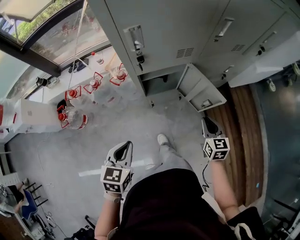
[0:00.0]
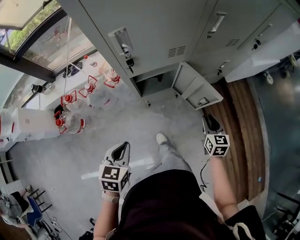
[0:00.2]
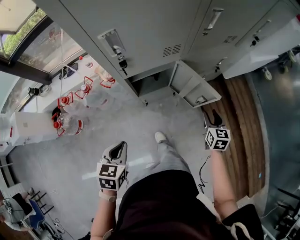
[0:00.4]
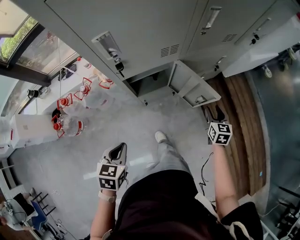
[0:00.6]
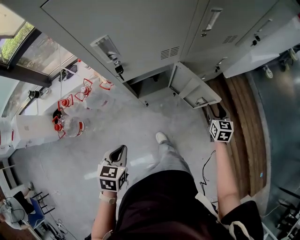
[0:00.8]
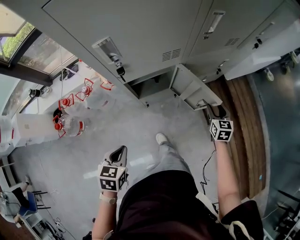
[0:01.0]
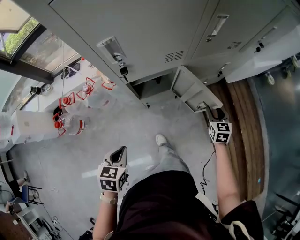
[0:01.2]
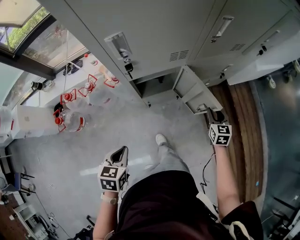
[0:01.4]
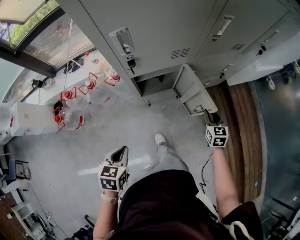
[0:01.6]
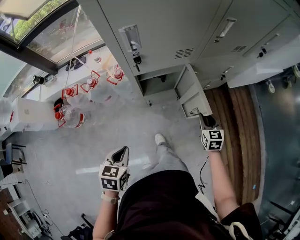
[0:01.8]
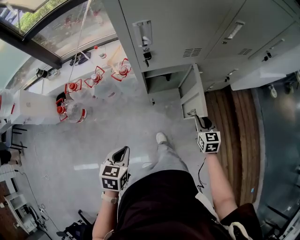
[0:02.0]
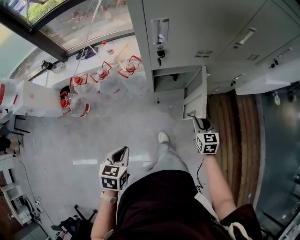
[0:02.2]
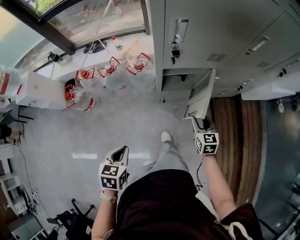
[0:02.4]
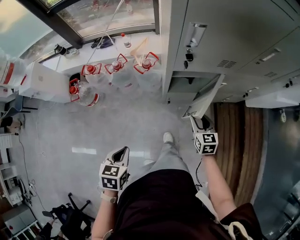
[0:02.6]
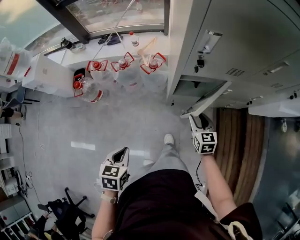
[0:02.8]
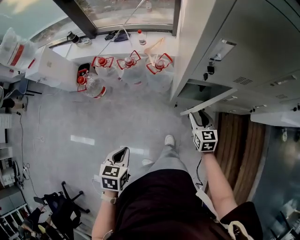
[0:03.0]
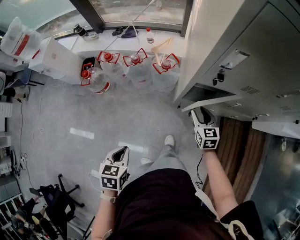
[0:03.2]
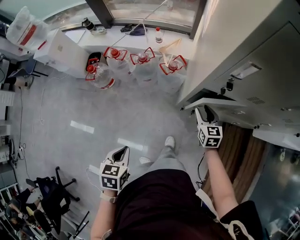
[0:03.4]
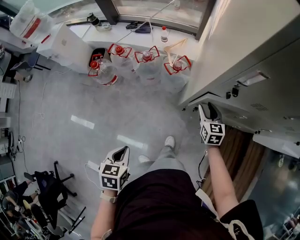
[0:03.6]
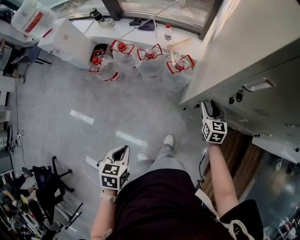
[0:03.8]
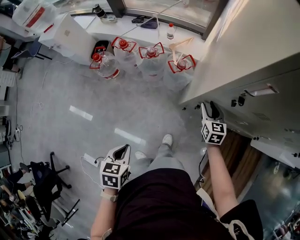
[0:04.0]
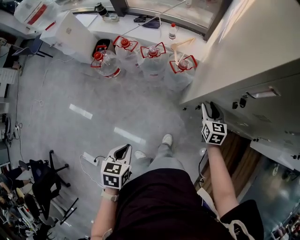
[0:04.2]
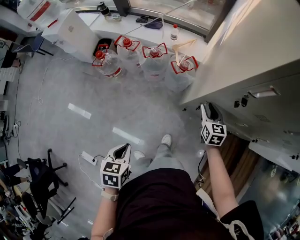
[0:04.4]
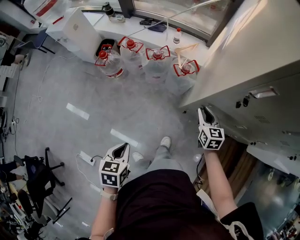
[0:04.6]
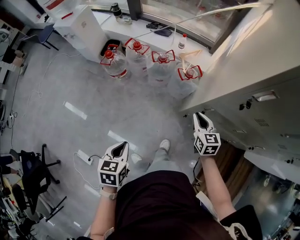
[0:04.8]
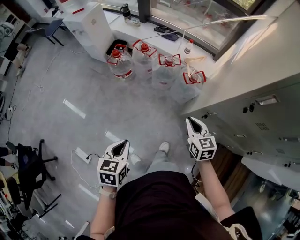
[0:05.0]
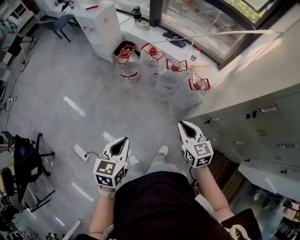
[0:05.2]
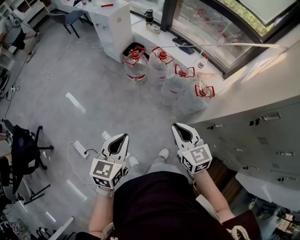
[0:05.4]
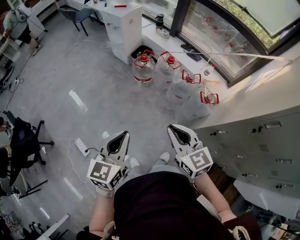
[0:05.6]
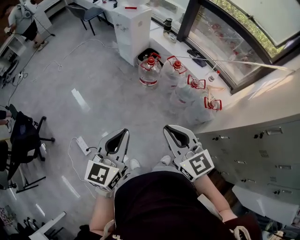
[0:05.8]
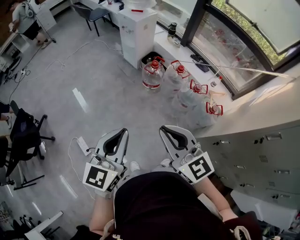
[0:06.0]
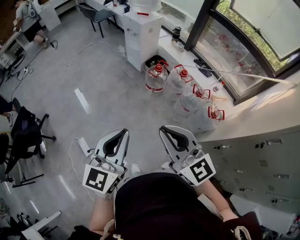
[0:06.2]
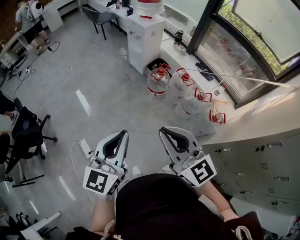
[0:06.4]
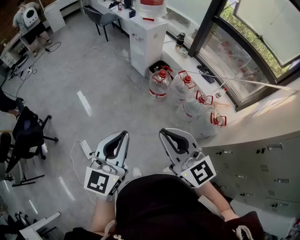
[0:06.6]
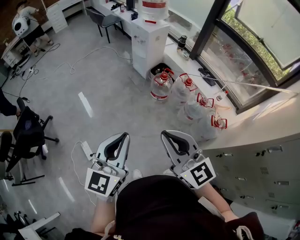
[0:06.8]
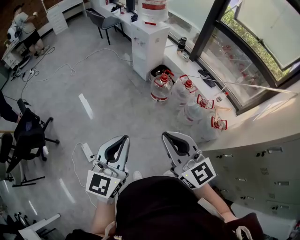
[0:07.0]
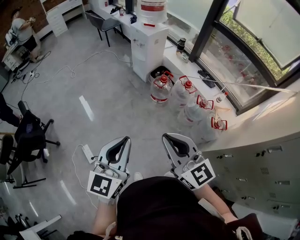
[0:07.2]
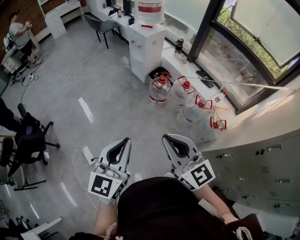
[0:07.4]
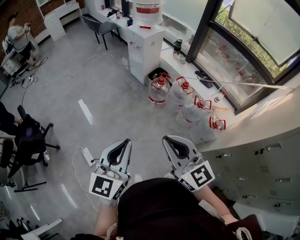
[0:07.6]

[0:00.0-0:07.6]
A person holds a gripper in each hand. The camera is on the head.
0:00.0 to 0:01.6: The left gripper shifts some 5 cm downward. Meanwhile the right gripper goes about 10 cm forward, downward and to the right, and opens and closes again.
0:01.6 to 0:03.0: The left gripper shifts by some 15 cm, and swivels about 20 degrees. Meanwhile the right gripper changes place by some 30 cm, and turns by roughly 30 degrees.
0:03.0 to 0:04.6: The right gripper shifts some 10 cm forward and to the left.
0:04.6 to 0:06.0: The left gripper moves upward, approximately 25 cm, and points its fingers about 50 degrees further upward. The right gripper shifts by about 60 cm, and rotates roughly 60 degrees.

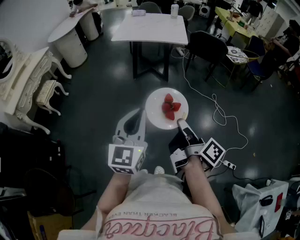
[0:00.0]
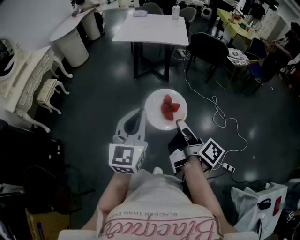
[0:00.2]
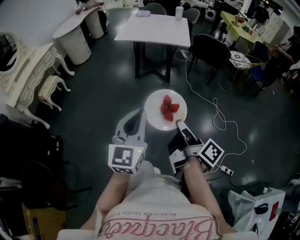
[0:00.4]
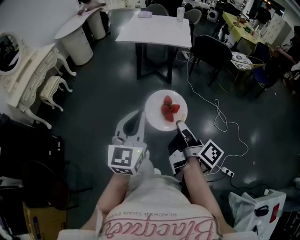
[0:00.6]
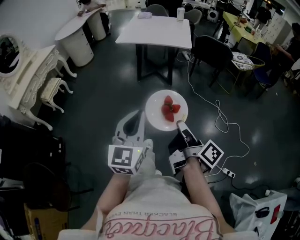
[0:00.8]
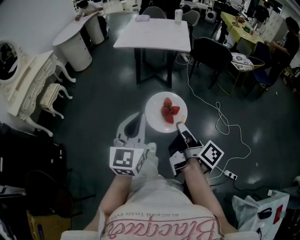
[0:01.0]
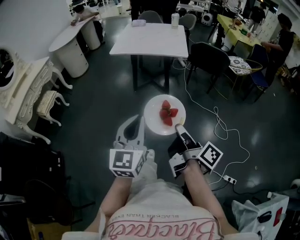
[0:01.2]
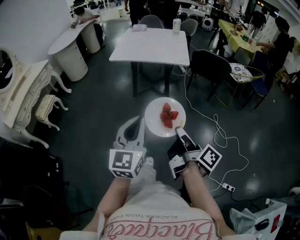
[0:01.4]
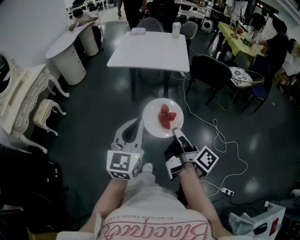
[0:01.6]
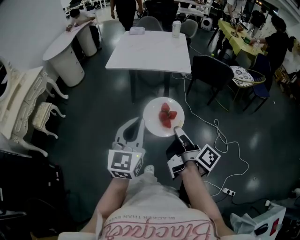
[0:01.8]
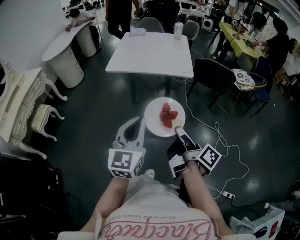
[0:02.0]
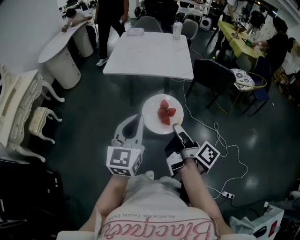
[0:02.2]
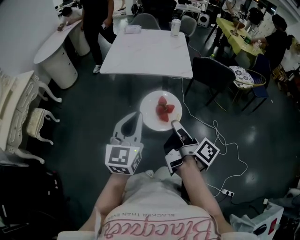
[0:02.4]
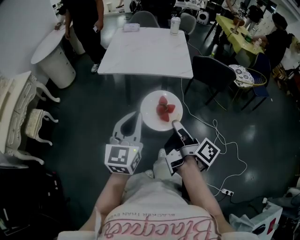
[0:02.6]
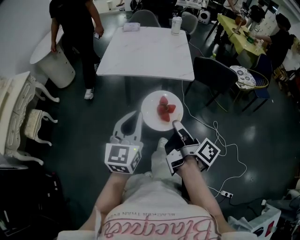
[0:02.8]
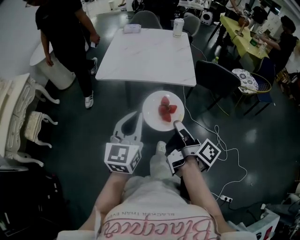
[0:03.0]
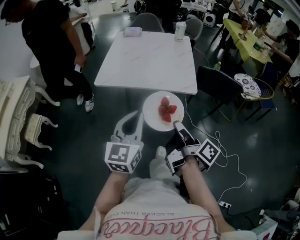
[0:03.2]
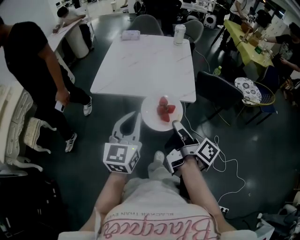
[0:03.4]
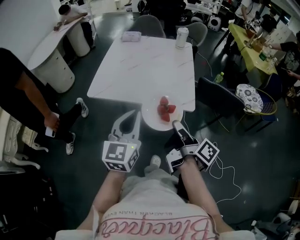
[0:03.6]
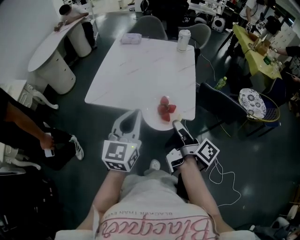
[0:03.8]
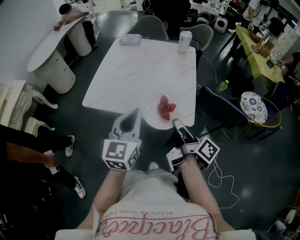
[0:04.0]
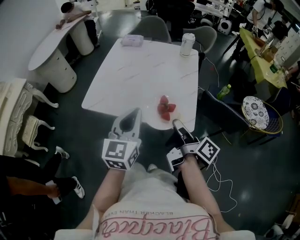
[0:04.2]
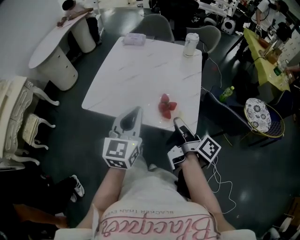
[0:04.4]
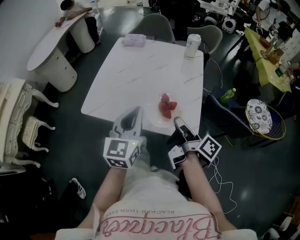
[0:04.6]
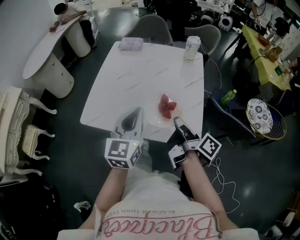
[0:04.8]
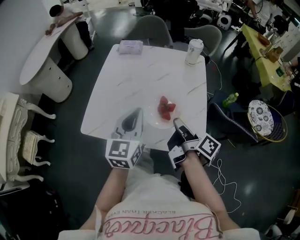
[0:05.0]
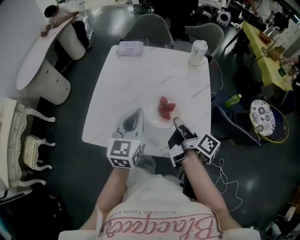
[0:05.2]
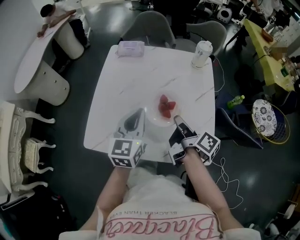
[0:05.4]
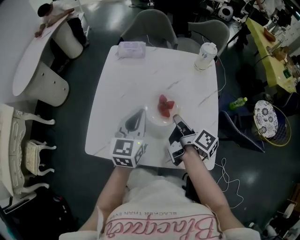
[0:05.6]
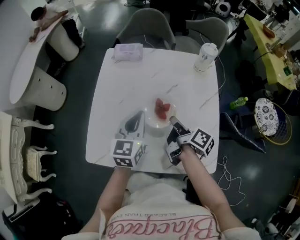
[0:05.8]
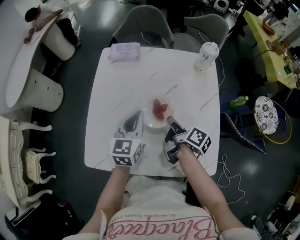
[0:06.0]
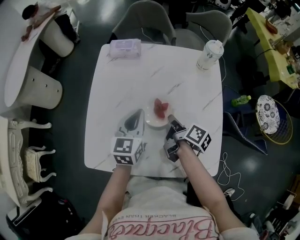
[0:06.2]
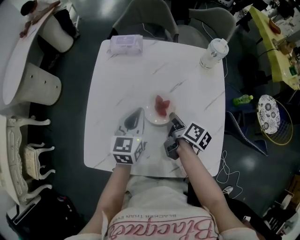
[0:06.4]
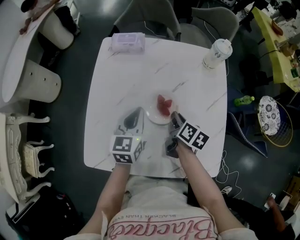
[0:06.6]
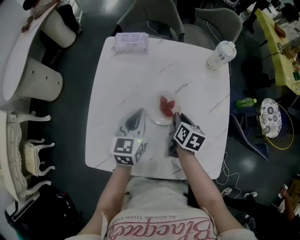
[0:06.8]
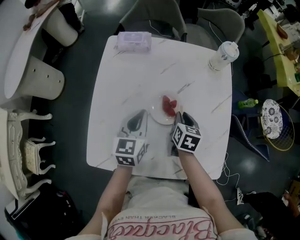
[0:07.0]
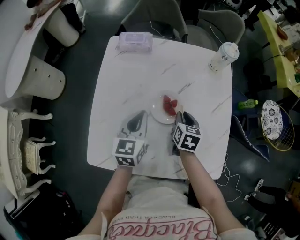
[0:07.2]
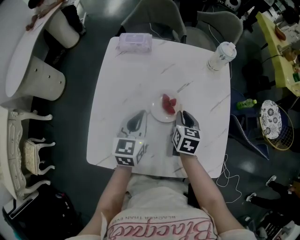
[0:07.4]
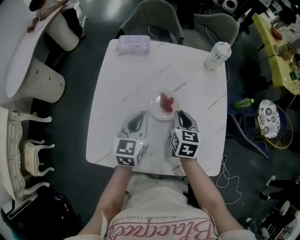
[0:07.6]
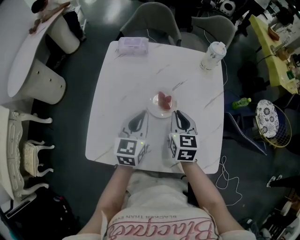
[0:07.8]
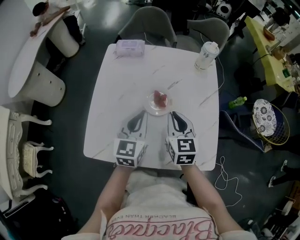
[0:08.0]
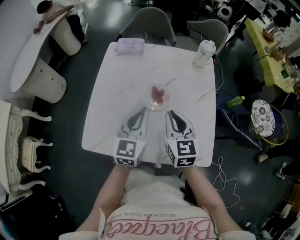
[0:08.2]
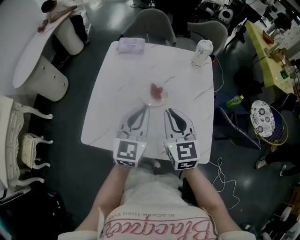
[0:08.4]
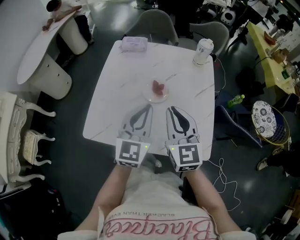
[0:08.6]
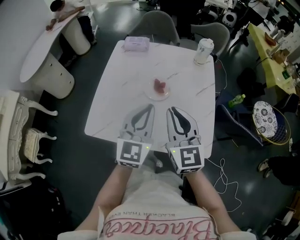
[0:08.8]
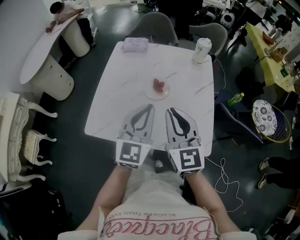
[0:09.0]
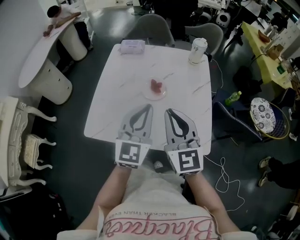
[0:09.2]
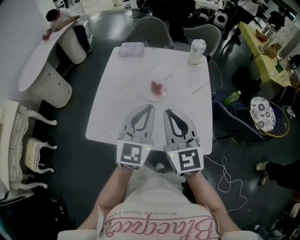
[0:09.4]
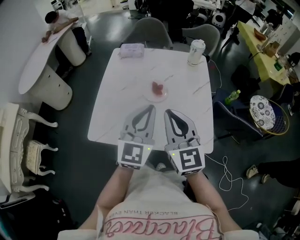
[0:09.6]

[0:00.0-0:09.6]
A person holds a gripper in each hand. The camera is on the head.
0:00.0 to 0:01.6: Both grippers travel together forward, approximately 20 cm.
0:01.6 to 0:03.2: Both grippers travel together forward, some 35 cm.
0:03.2 to 0:04.8: The two grippers go about 40 cm forward.
0:04.8 to 0:06.4: Both grippers travel together forward and downward, some 30 cm. The right gripper changes its angle by approximately 30 degrees.
0:06.4 to 0:08.0: The right gripper is displaced upward and backward by some 10 cm, and twists some 60 degrees counterclockwise, seen from behind, while the left gripper travels backward by some 5 cm.
0:08.0 to 0:09.6: The grippers both shift backward and upward by roughly 20 cm. The left gripper swivels approximately 20 degrees, while the right gripper rotates roughly 30 degrees.

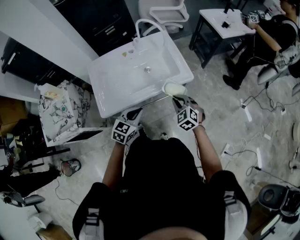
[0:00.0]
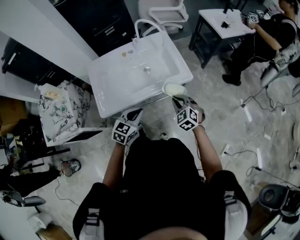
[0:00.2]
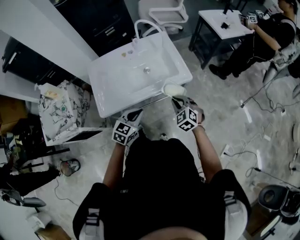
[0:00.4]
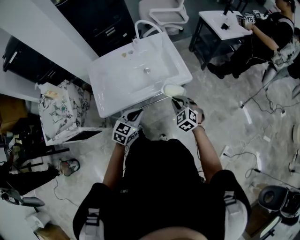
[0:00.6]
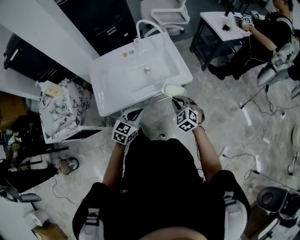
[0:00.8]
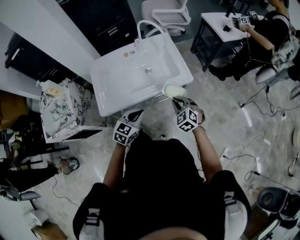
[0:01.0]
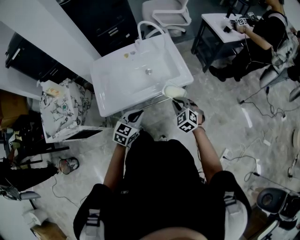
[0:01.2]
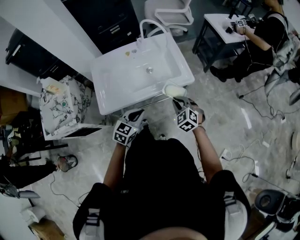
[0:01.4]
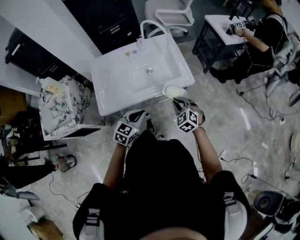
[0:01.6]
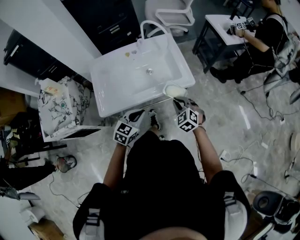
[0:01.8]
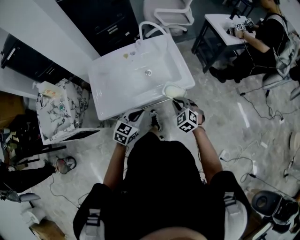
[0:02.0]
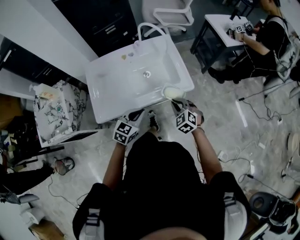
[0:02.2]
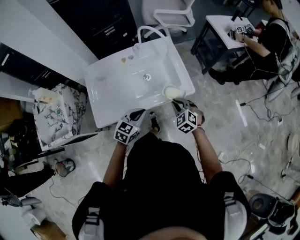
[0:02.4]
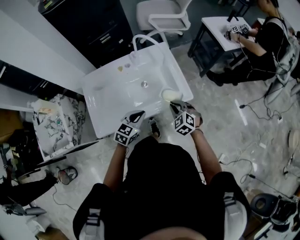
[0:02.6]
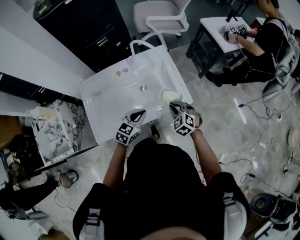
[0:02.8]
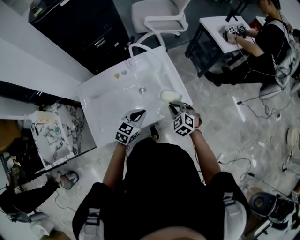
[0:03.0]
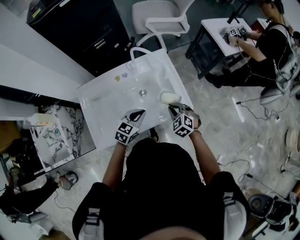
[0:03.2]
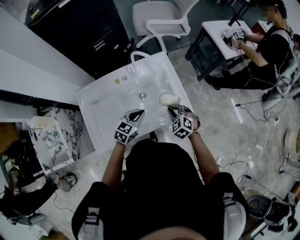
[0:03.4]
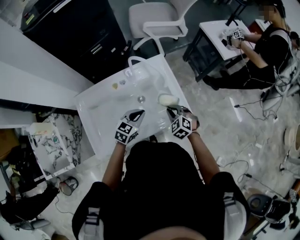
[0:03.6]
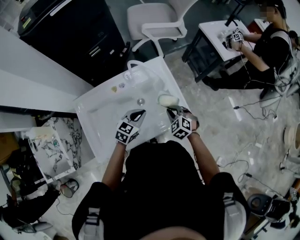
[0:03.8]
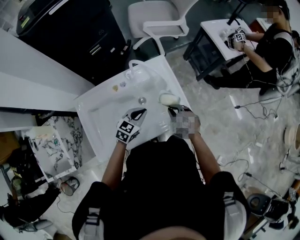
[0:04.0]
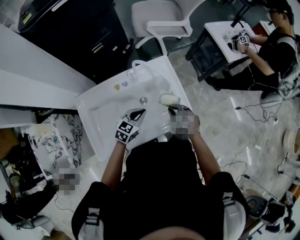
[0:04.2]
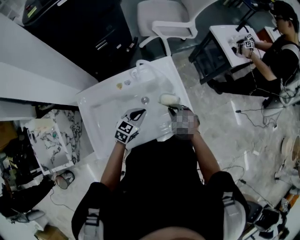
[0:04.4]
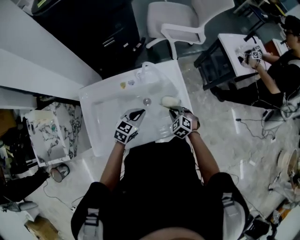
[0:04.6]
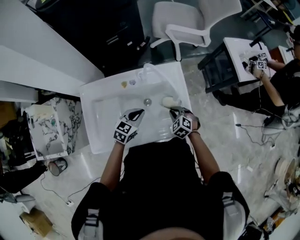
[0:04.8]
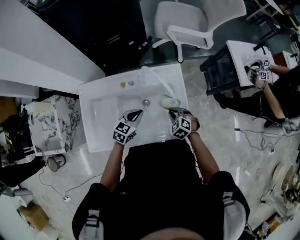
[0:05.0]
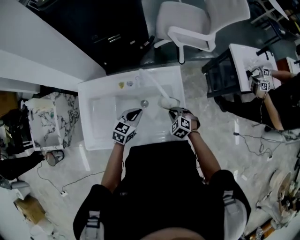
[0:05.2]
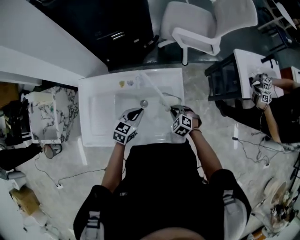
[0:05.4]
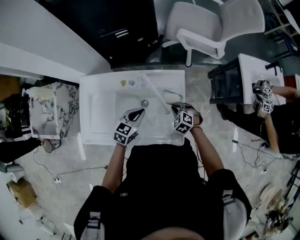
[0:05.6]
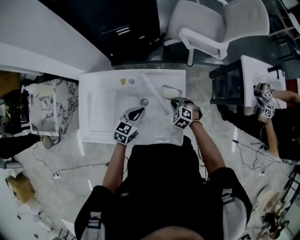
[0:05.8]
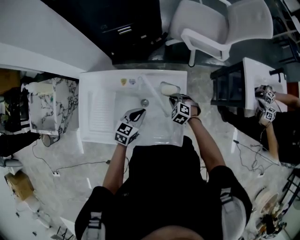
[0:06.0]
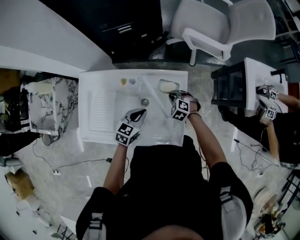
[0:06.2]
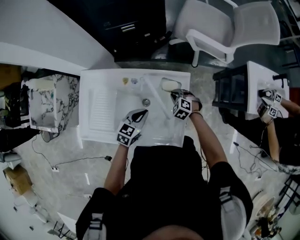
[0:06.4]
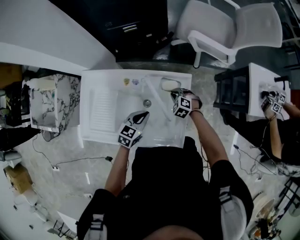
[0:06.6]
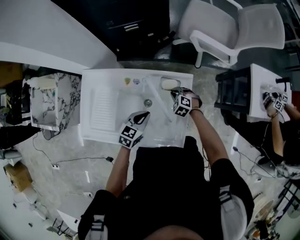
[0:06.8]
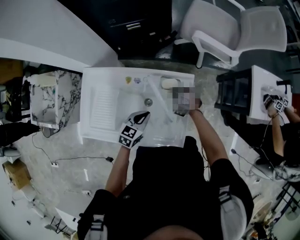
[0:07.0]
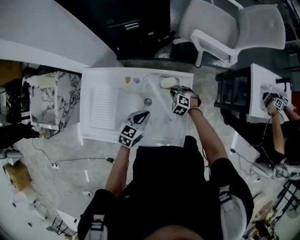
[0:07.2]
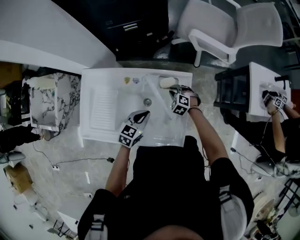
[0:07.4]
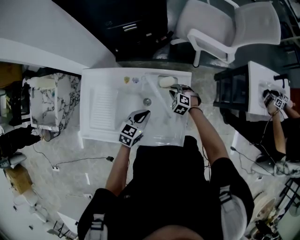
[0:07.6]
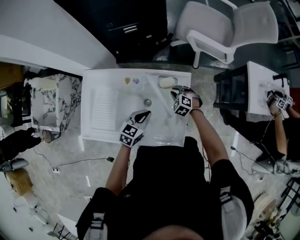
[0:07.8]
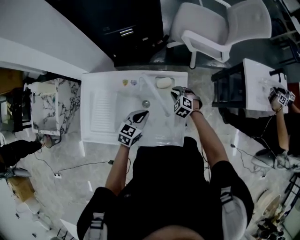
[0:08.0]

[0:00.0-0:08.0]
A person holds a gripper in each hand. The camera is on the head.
0:00.0 to 0:01.6: There are only small adjustments of the grippers.
0:01.6 to 0:03.2: The two grippers go some 20 cm forward.
0:03.2 to 0:04.8: The right gripper moves forward and downward, approximately 10 cm. The left gripper heads forward, covering about 10 cm.
0:04.8 to 0:06.4: The left gripper moves to the right and forward, some 5 cm. Meanwhile the right gripper moves forward, some 15 cm, and swivels approximately 20 degrees.
0:06.4 to 0:08.0: The grippers move only a little.
